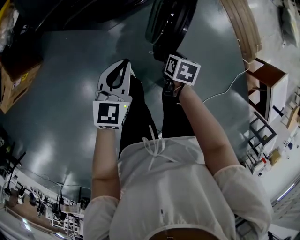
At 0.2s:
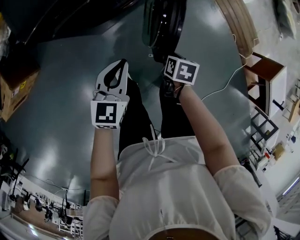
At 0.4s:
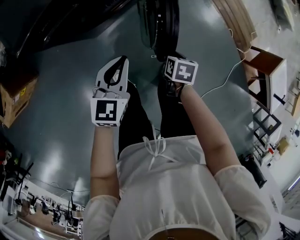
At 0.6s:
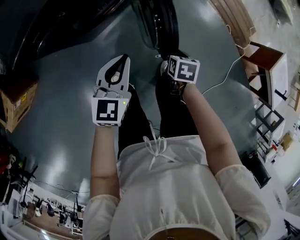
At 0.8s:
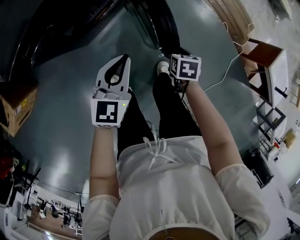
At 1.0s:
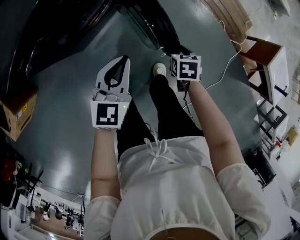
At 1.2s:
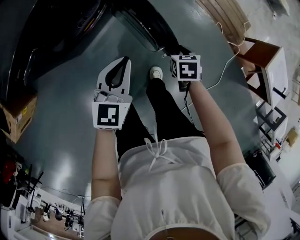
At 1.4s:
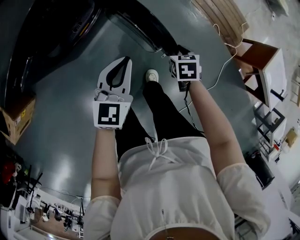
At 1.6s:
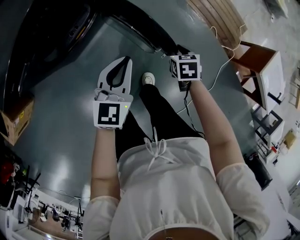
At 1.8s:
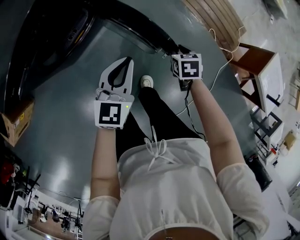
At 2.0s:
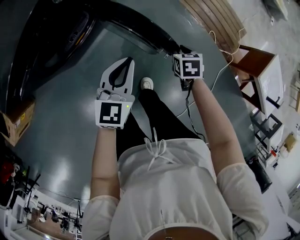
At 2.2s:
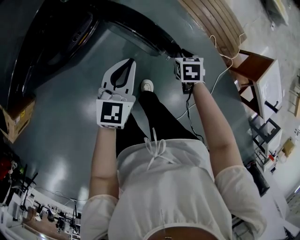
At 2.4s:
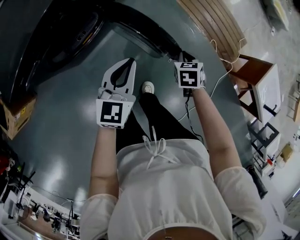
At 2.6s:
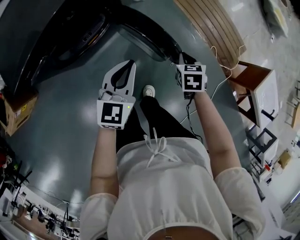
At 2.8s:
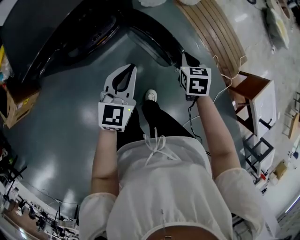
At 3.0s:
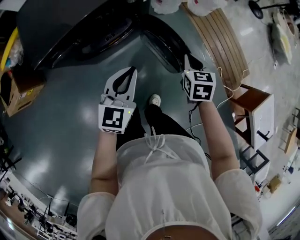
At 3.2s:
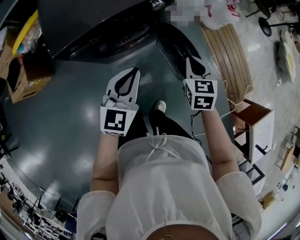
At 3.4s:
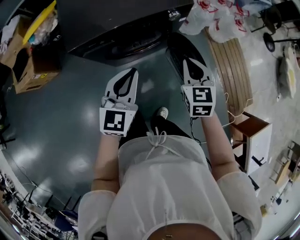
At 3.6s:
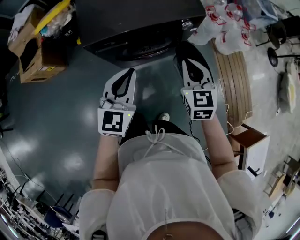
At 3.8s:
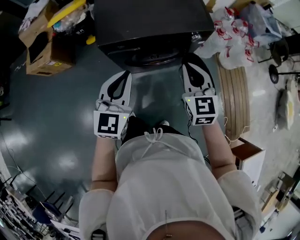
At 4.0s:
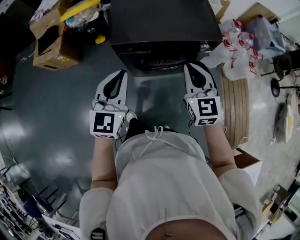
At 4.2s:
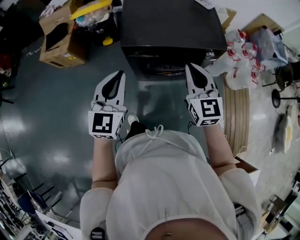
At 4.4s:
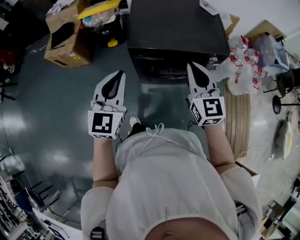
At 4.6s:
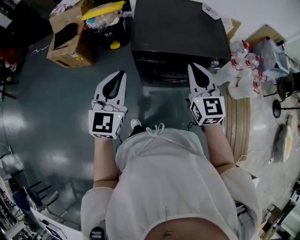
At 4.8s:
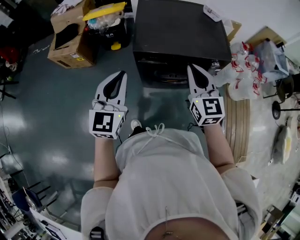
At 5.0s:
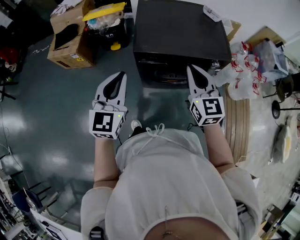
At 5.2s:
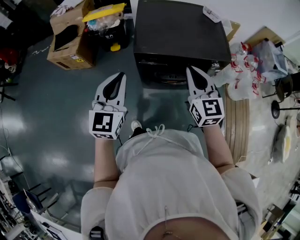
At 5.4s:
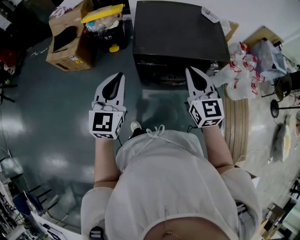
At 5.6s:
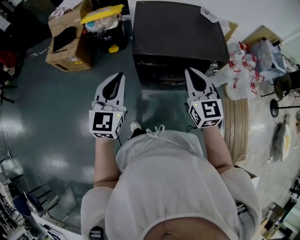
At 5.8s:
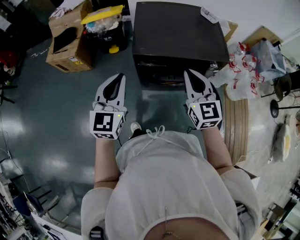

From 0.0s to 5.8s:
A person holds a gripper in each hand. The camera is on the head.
From 0.0s to 1.4s: Both grippers move to the right and forward, about 35 cm.
From 1.4s to 2.8s: The left gripper goes about 10 cm upward; the right gripper moves upward and forward, some 15 cm.
From 2.8s to 4.4s: The right gripper moves about 50 cm, and tilts its fingers some 50 degrees upward, while the left gripper shifts by about 50 cm, and rotates roughly 40 degrees.
From 4.4s to 5.8s: The grippers stay close to where they were, moving slightly.

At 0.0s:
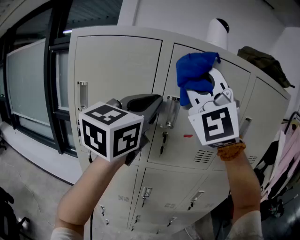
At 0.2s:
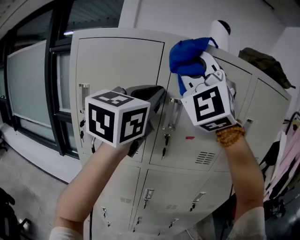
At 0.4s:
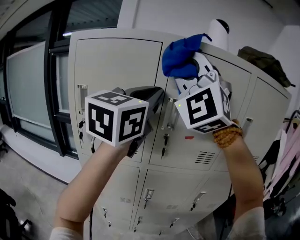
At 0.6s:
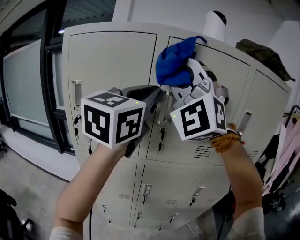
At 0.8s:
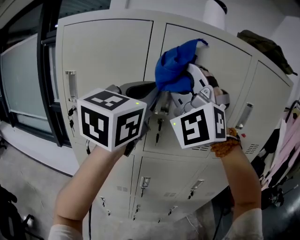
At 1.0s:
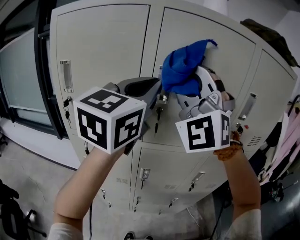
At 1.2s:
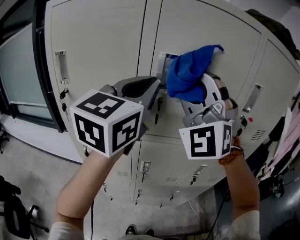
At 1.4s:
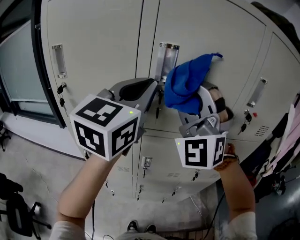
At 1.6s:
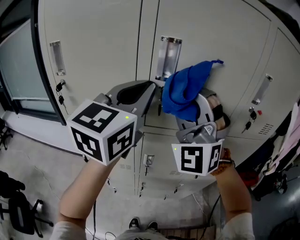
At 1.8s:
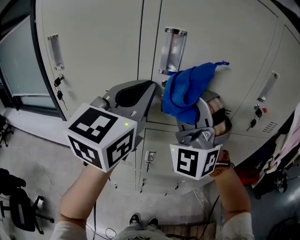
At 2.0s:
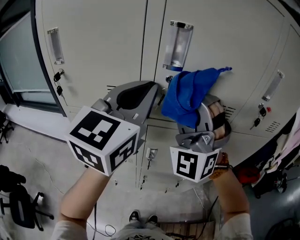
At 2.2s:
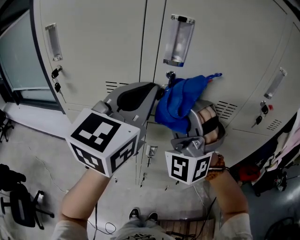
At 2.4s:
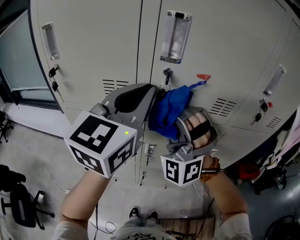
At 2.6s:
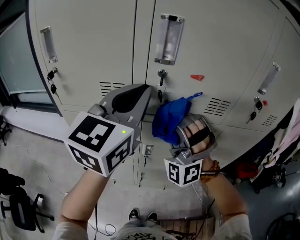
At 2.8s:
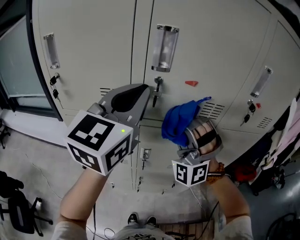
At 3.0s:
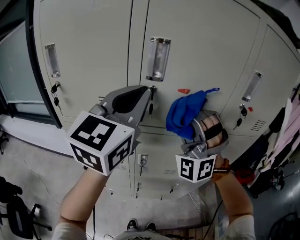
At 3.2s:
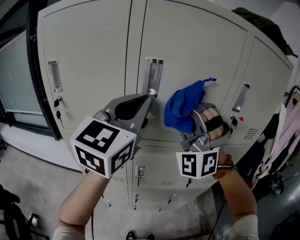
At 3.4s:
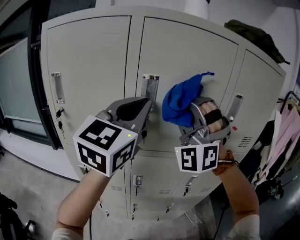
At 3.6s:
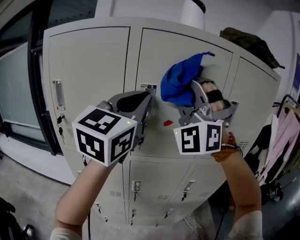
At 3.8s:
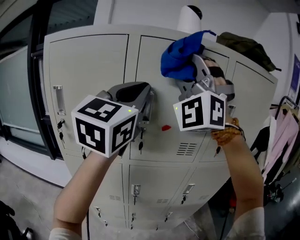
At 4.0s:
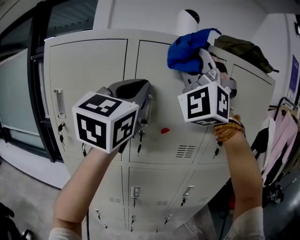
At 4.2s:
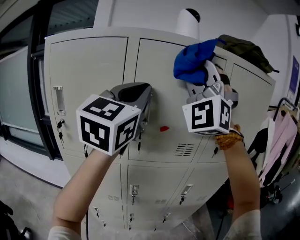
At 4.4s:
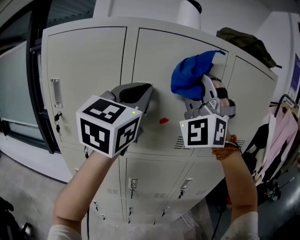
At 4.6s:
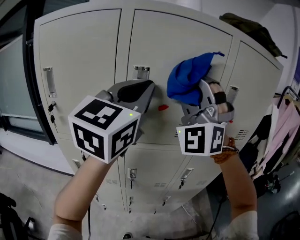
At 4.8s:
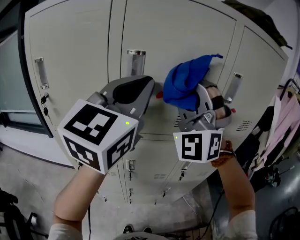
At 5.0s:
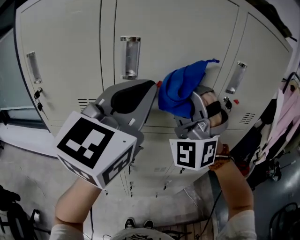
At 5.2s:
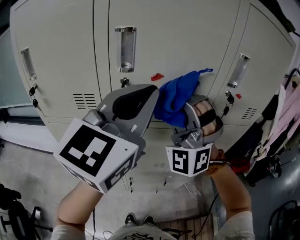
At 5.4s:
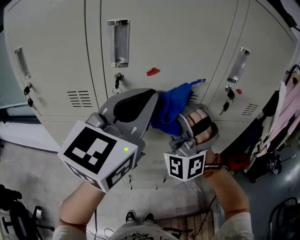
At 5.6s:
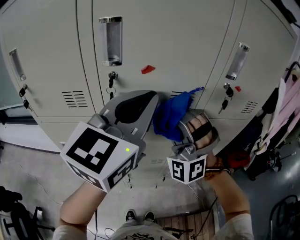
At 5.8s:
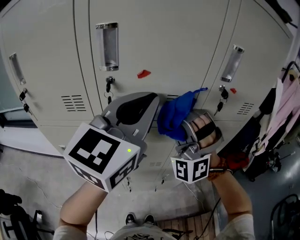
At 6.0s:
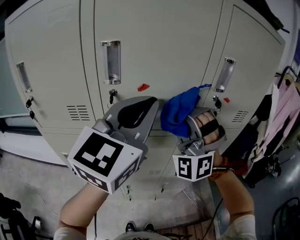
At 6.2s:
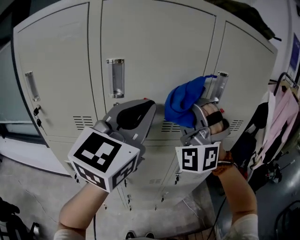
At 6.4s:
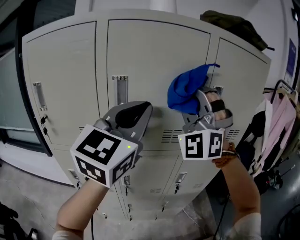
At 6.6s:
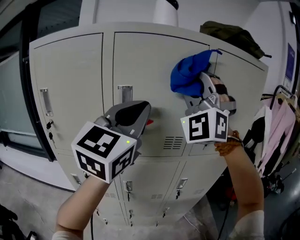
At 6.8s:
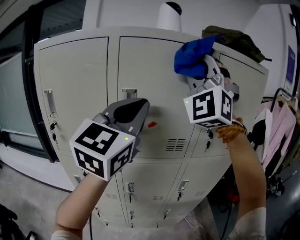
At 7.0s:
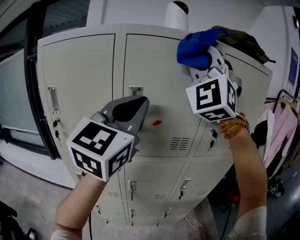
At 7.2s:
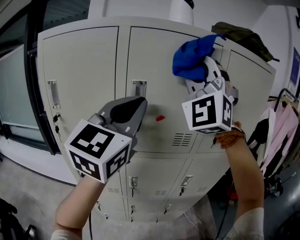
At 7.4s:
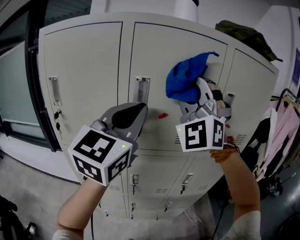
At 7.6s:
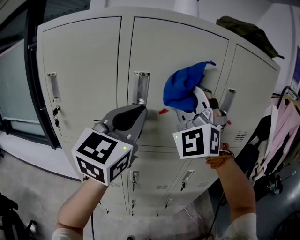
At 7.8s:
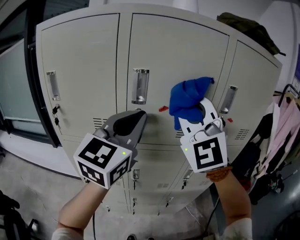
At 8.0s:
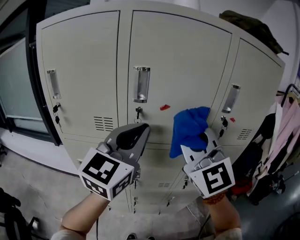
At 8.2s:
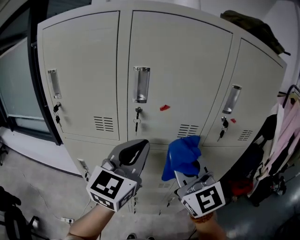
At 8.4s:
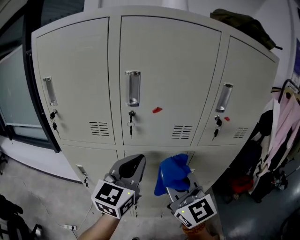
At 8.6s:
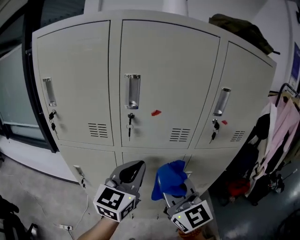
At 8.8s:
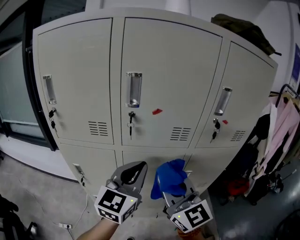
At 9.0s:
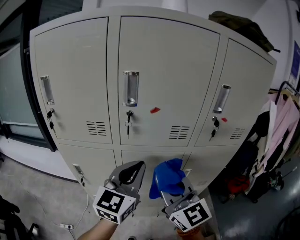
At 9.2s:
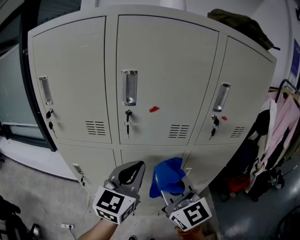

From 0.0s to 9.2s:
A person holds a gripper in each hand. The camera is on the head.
From 0.0s to 1.6s: The left gripper moves downward, some 10 cm.
From 3.0s to 4.6s: The left gripper is displaced upward by some 10 cm.
From 6.2s to 7.6s: The left gripper moves roughly 10 cm.
From 7.6s to 9.2s: The left gripper heads downward, covering about 15 cm.

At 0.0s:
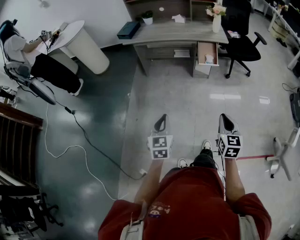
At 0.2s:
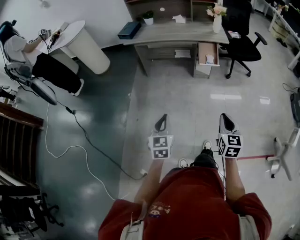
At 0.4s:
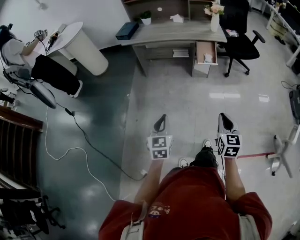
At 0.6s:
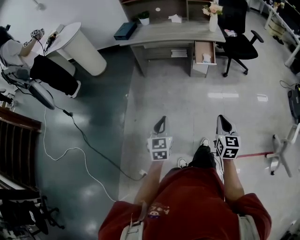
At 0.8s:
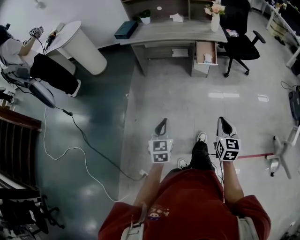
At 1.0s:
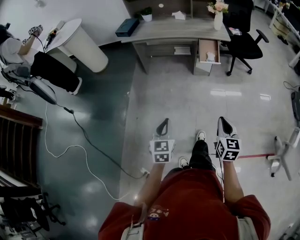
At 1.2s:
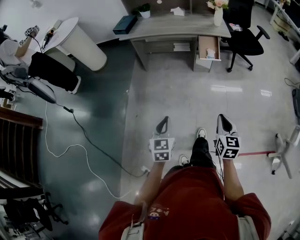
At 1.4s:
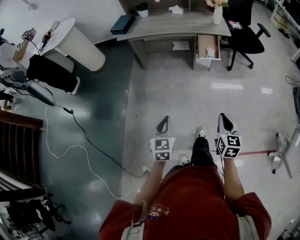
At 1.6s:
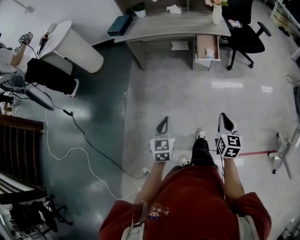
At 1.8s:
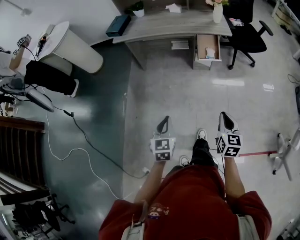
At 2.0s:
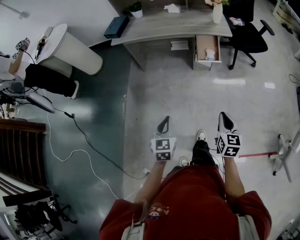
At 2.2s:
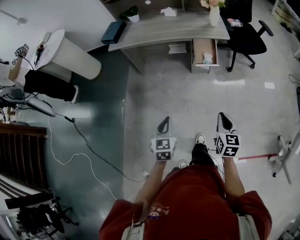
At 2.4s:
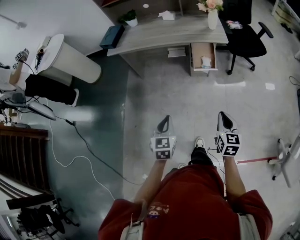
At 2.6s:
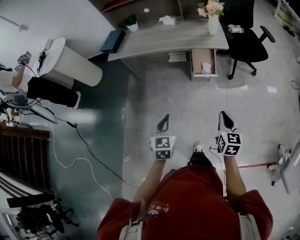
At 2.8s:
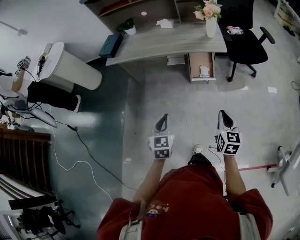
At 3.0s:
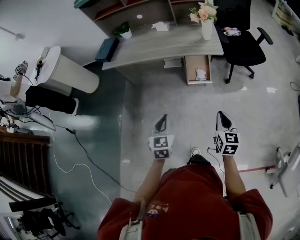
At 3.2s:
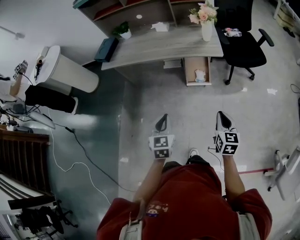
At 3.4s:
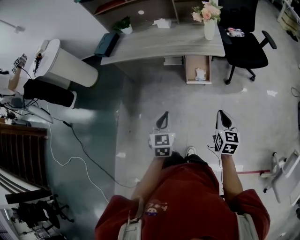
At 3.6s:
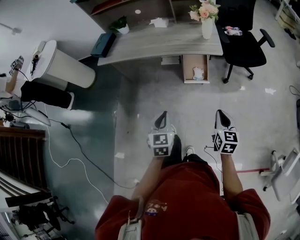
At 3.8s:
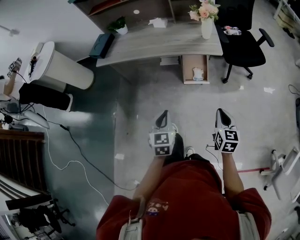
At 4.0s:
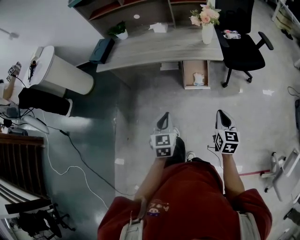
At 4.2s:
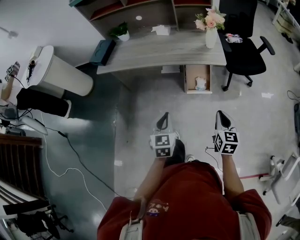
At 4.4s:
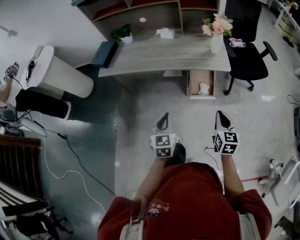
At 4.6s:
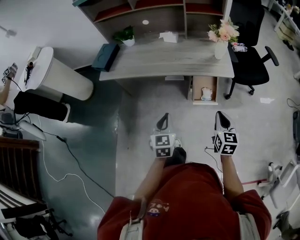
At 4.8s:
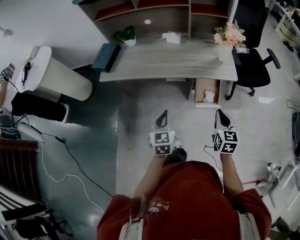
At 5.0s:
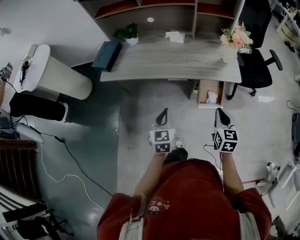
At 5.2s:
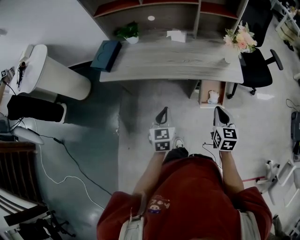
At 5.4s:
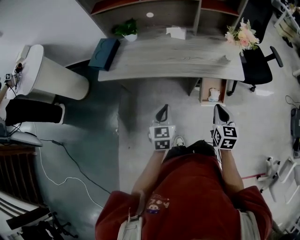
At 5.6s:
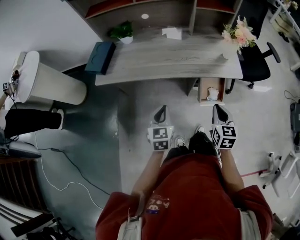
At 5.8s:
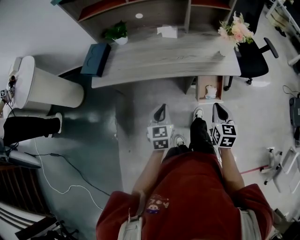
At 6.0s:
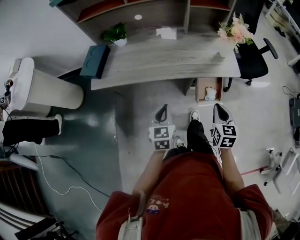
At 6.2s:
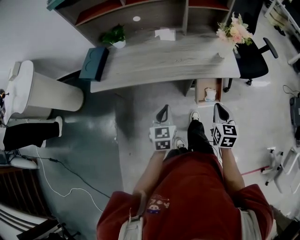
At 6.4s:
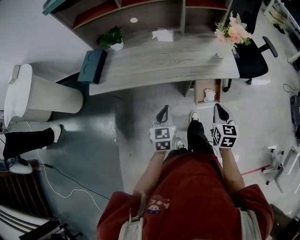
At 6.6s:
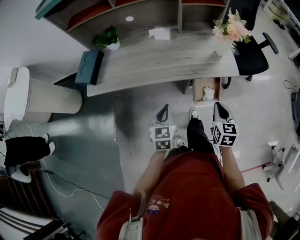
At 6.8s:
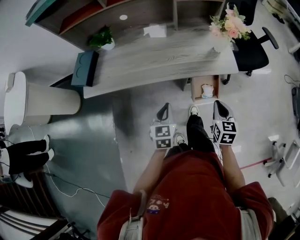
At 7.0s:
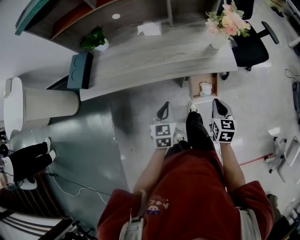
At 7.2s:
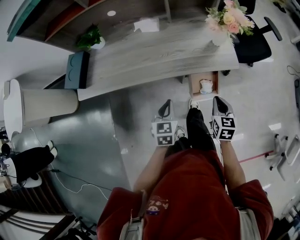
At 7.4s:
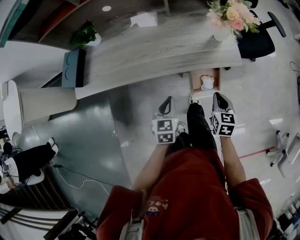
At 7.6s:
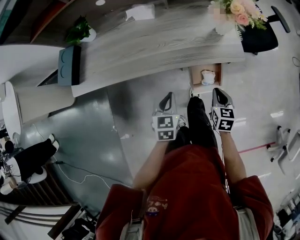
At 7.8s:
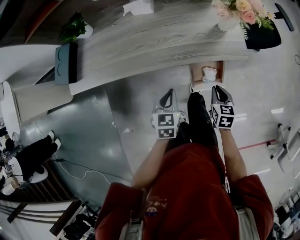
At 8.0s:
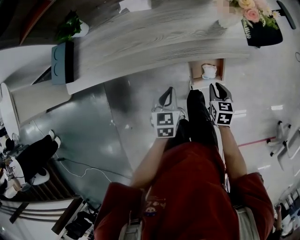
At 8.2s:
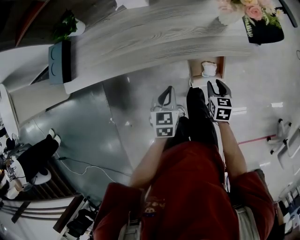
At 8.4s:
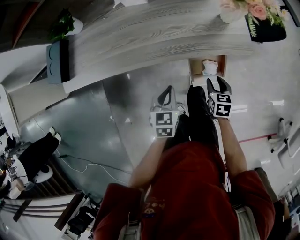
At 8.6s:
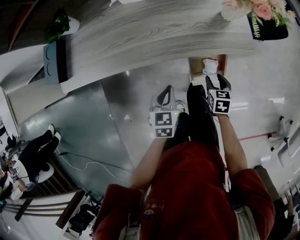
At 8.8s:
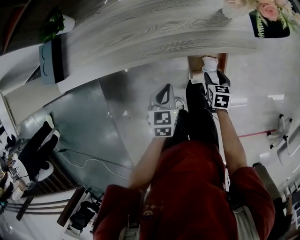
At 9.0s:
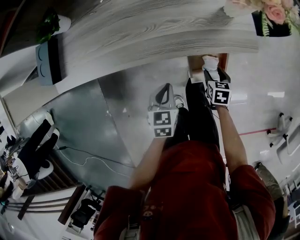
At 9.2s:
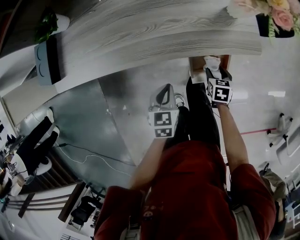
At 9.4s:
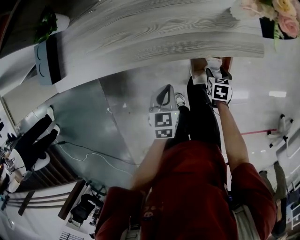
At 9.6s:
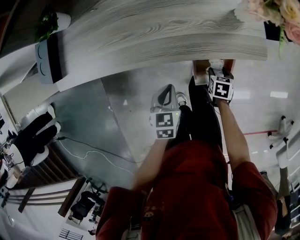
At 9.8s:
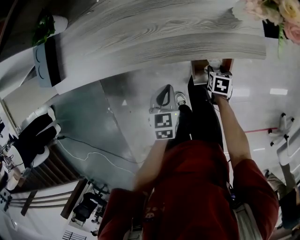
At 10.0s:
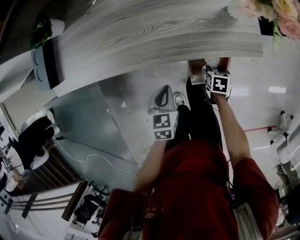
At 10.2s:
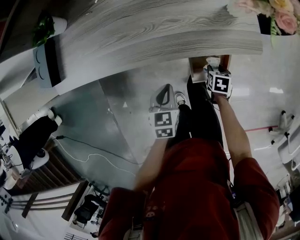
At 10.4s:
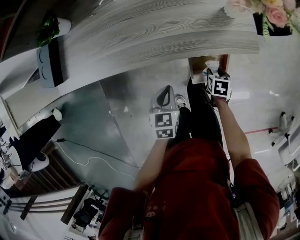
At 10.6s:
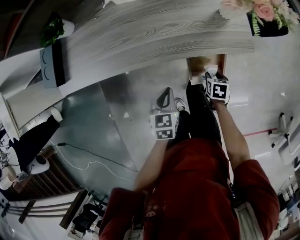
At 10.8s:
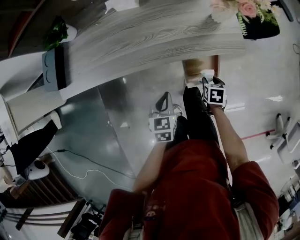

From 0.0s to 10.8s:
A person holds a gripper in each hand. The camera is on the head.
From 0.0s to 1.6s: The grippers both shift forward by approximately 10 cm.
From 1.6s to 3.0s: Both grippers move forward and to the right, roughly 30 cm.
From 3.0s to 4.6s: Both grippers travel together forward, approximately 20 cm.
From 4.6s to 6.2s: Both grippers travel together forward and to the left, roughly 15 cm.
From 6.2s to 7.8s: The right gripper goes about 20 cm downward and forward. Meanwhile the left gripper is displaced downward, forward and to the right by roughly 20 cm.
From 7.8s to 9.2s: The right gripper heads downward, covering about 15 cm, and opens. Meanwhile the left gripper goes some 10 cm downward.
From 9.2s to 10.8s: The right gripper moves roughly 5 cm.
